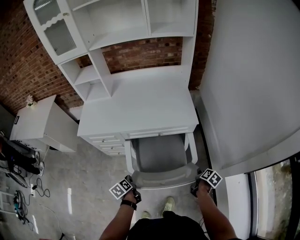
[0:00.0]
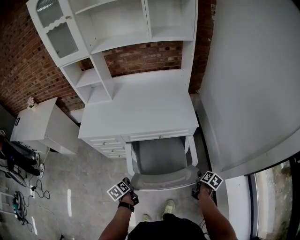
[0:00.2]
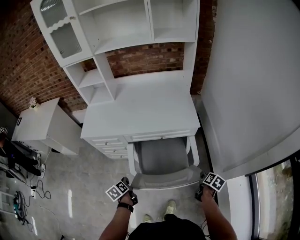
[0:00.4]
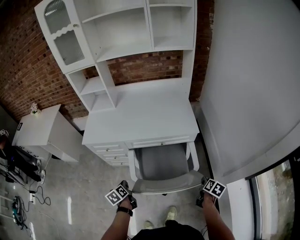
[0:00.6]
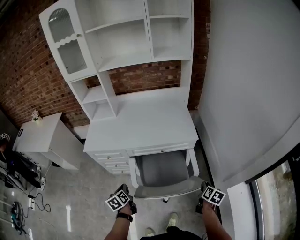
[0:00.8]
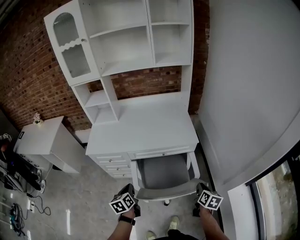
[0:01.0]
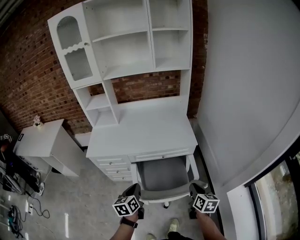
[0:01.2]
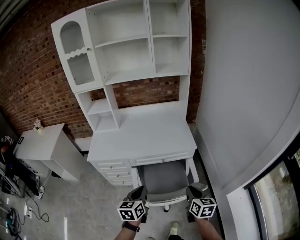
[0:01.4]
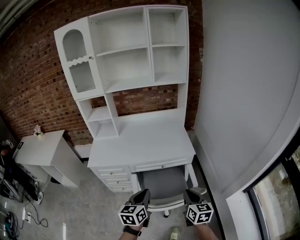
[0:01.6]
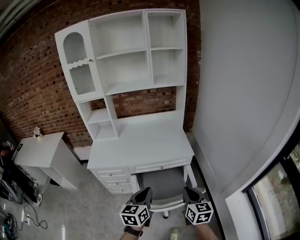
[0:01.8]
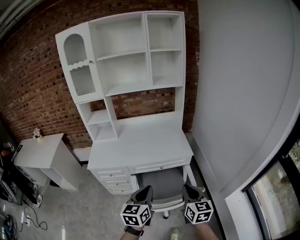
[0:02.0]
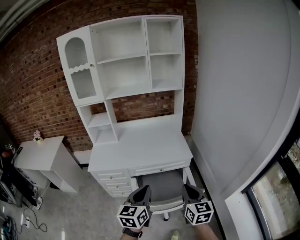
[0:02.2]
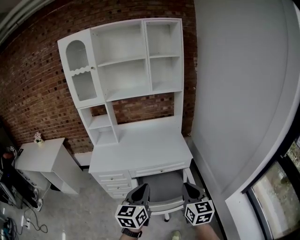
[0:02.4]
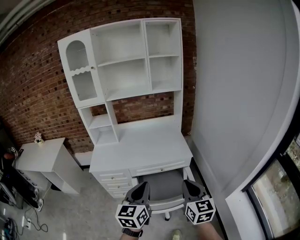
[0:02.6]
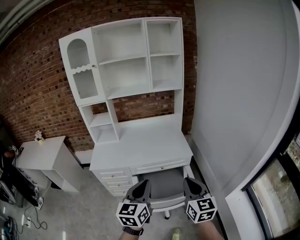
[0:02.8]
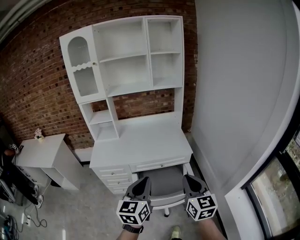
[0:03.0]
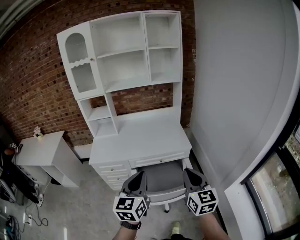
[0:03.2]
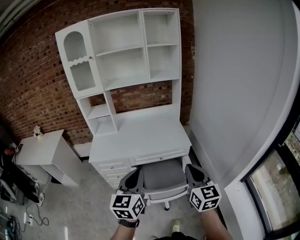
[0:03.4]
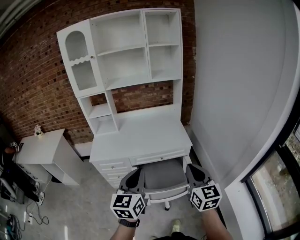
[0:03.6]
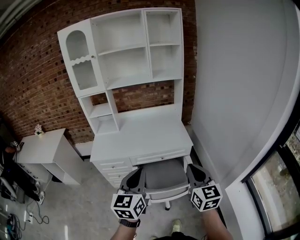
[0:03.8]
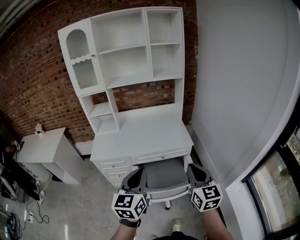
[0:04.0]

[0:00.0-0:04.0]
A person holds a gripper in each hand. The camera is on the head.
0:00.0 to 0:01.4: The left gripper shifts about 25 cm upward, and swivels about 50 degrees. The right gripper travels upward and to the left by roughly 30 cm, swivels approximately 50 degrees, and closes.
0:01.4 to 0:02.6: Both grippers travel together upward, approximately 15 cm. The right gripper rotates approximately 20 degrees.
0:02.6 to 0:04.0: The grippers stay close to where they were, moving slightly.

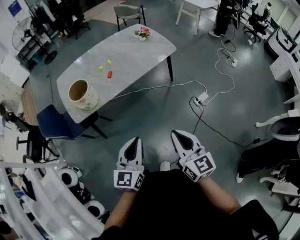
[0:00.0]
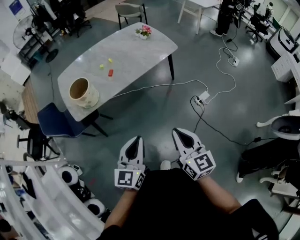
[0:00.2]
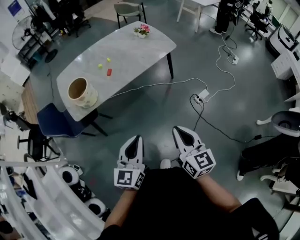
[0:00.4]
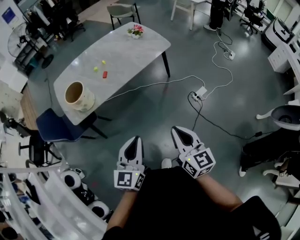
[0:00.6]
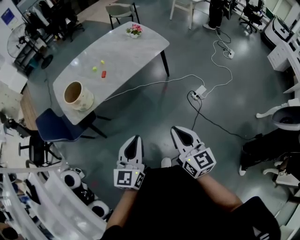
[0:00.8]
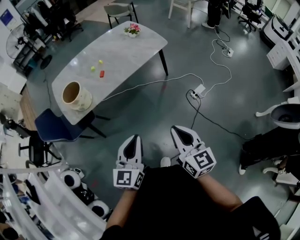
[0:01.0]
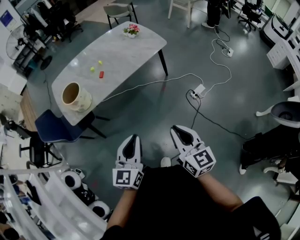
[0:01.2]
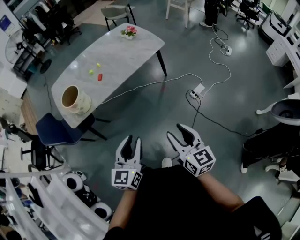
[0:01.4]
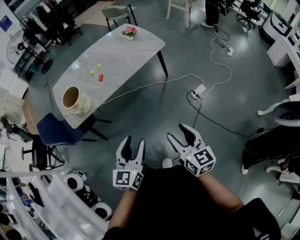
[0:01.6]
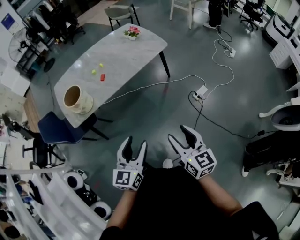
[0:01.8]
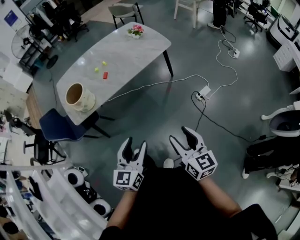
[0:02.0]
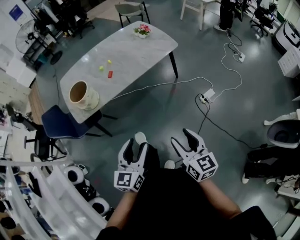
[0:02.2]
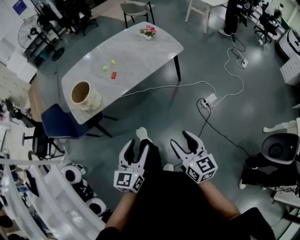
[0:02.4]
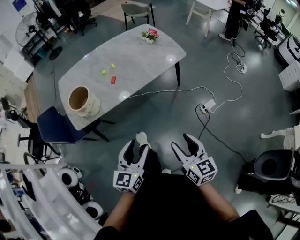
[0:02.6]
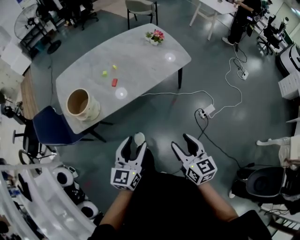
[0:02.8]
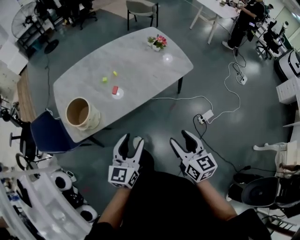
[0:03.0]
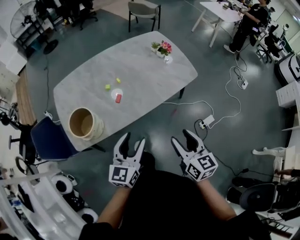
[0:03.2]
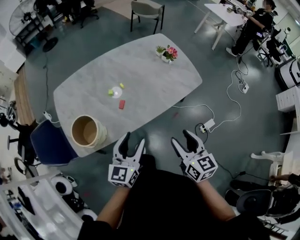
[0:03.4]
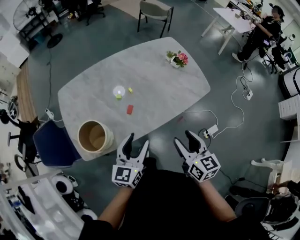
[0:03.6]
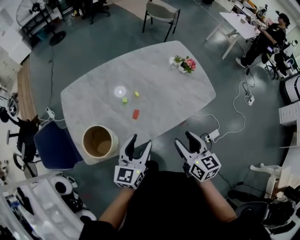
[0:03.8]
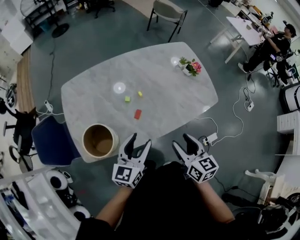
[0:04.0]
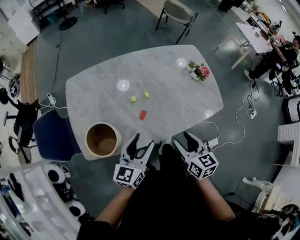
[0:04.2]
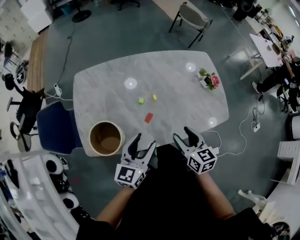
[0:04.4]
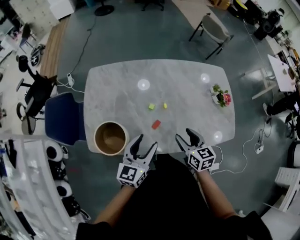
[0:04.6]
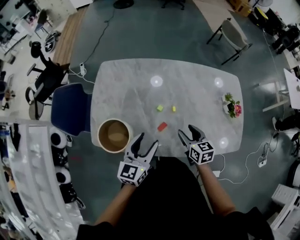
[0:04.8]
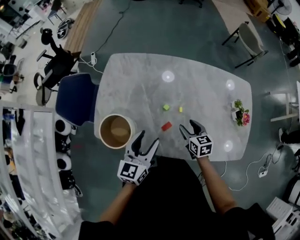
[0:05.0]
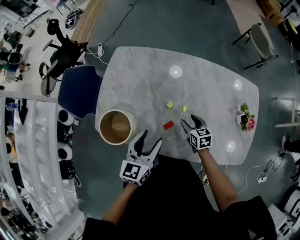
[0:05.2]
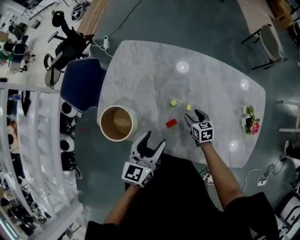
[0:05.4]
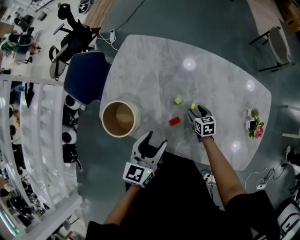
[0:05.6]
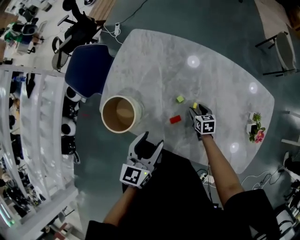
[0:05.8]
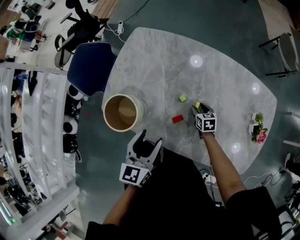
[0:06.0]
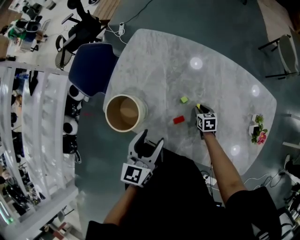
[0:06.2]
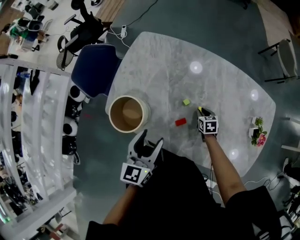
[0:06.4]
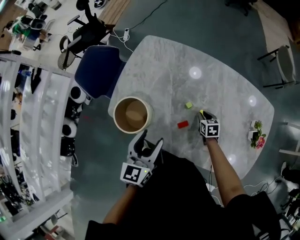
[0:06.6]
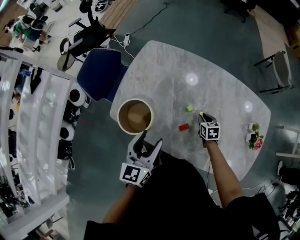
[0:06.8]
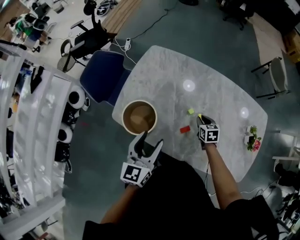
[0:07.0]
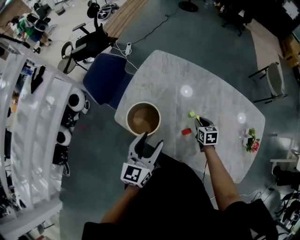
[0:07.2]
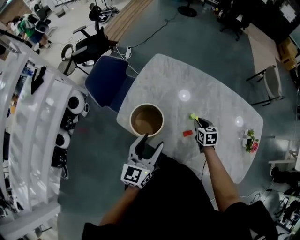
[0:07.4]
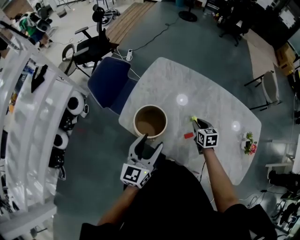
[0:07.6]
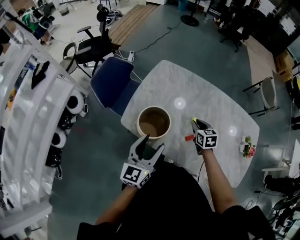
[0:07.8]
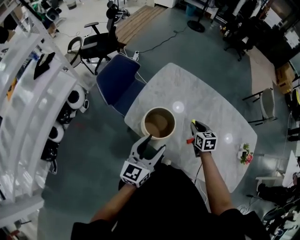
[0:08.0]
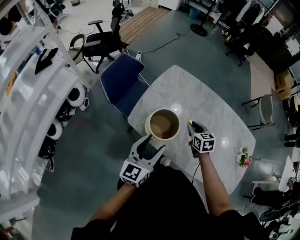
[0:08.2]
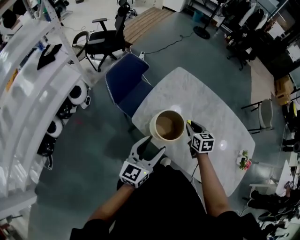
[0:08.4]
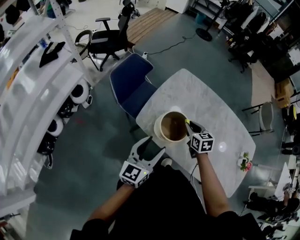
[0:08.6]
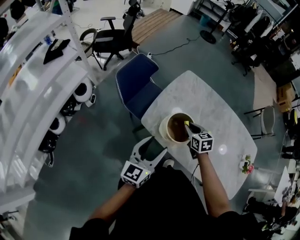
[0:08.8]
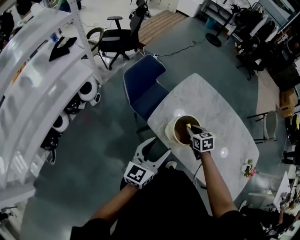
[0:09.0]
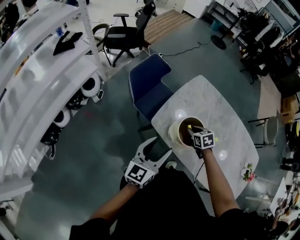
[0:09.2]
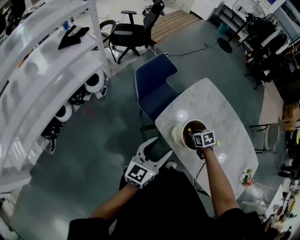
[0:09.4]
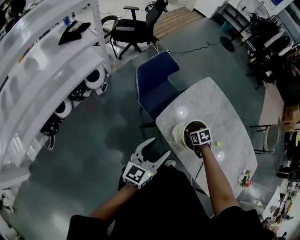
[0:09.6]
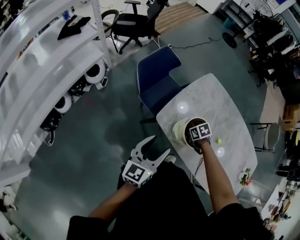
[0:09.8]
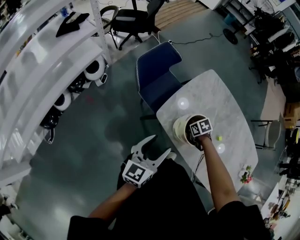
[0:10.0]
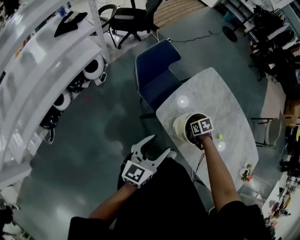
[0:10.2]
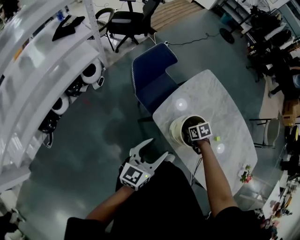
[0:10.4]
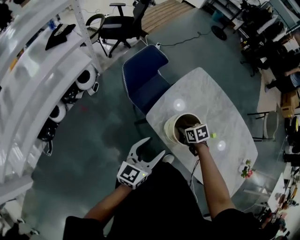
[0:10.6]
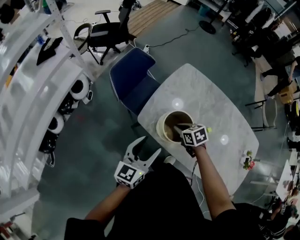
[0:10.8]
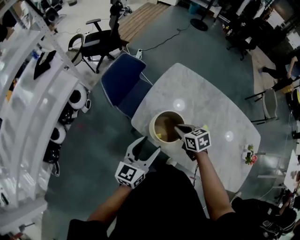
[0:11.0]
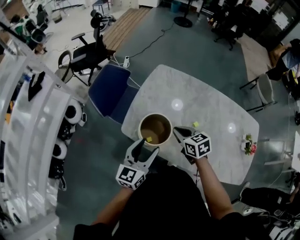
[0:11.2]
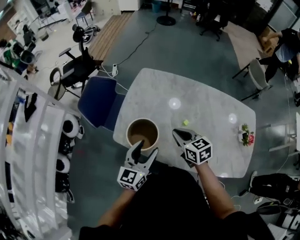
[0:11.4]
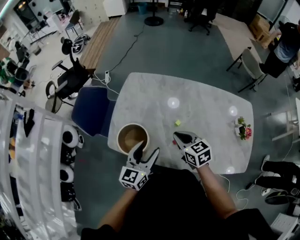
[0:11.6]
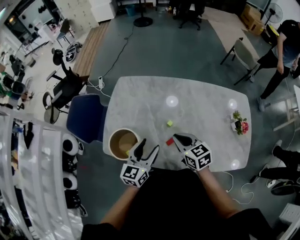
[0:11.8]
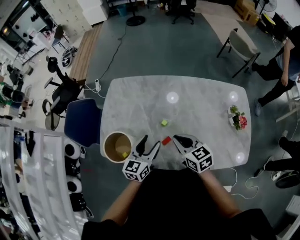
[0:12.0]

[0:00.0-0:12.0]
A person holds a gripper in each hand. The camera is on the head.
0:00.0 to 0:01.6: The grippers both shift to the right by some 5 cm. The left gripper opens its fingers; the right gripper opens.
0:01.6 to 0:03.0: The grippers both shift forward by about 25 cm.
0:03.0 to 0:04.4: Both grippers travel together forward and to the left, roughly 35 cm. The right gripper changes its angle by some 20 degrees.
0:04.4 to 0:06.0: The left gripper heads downward, covering about 5 cm, and changes its angle by approximately 40 degrees. The right gripper is displaced downward by roughly 30 cm, and turns by roughly 40 degrees.
0:06.0 to 0:07.6: The left gripper goes about 15 cm to the left and upward, while the right gripper goes some 20 cm upward and to the left, and closes up.
0:07.6 to 0:09.0: The left gripper is displaced to the left by some 15 cm. Meanwhile the right gripper heads to the left, covering about 25 cm, and swivels some 20 degrees.
0:09.0 to 0:10.4: The left gripper shifts by some 5 cm, while the right gripper goes roughly 10 cm downward, and changes its angle by about 30 degrees.
0:10.4 to 0:12.0: The left gripper changes place by some 40 cm, and turns by roughly 30 degrees. Meanwhile the right gripper moves about 40 cm, and tips its fingers upward by approximately 40 degrees.

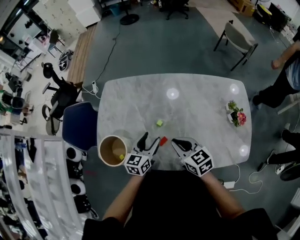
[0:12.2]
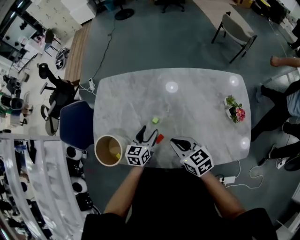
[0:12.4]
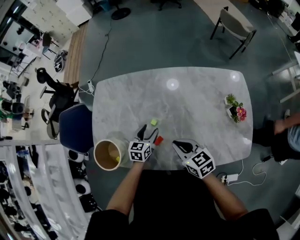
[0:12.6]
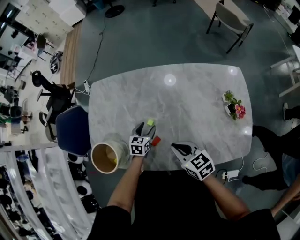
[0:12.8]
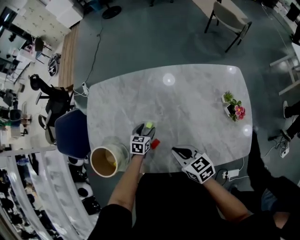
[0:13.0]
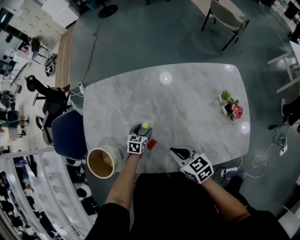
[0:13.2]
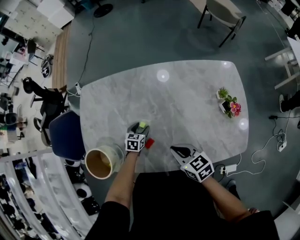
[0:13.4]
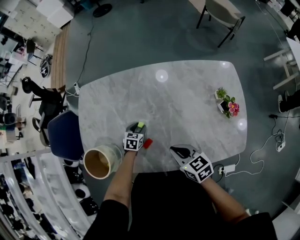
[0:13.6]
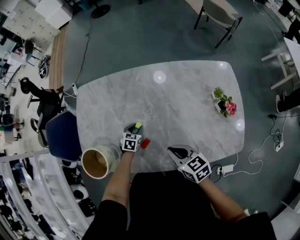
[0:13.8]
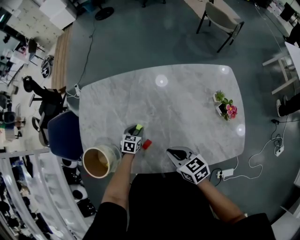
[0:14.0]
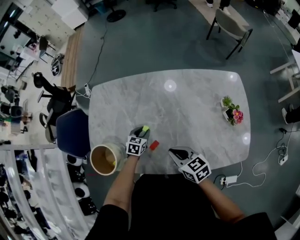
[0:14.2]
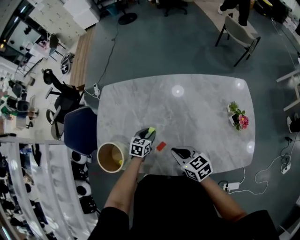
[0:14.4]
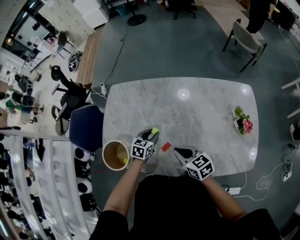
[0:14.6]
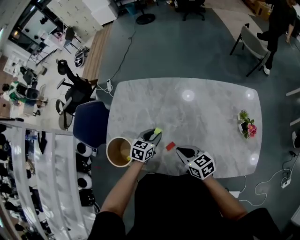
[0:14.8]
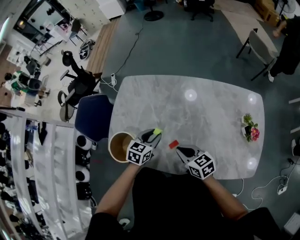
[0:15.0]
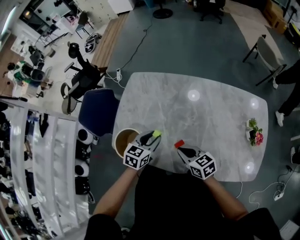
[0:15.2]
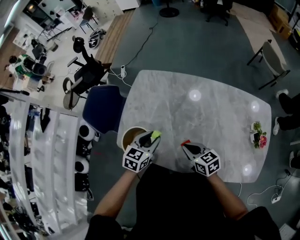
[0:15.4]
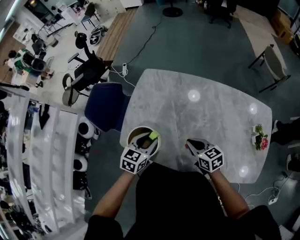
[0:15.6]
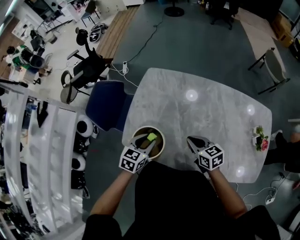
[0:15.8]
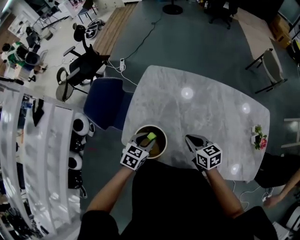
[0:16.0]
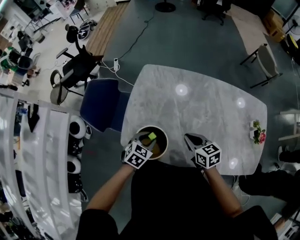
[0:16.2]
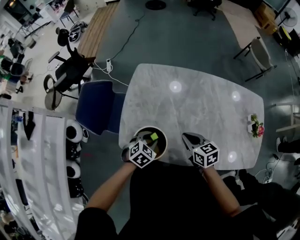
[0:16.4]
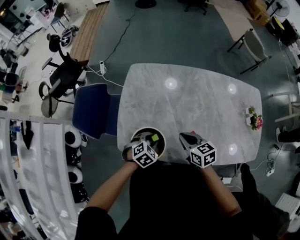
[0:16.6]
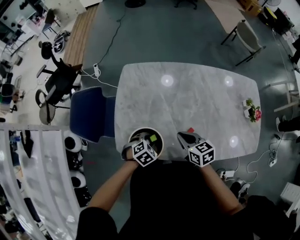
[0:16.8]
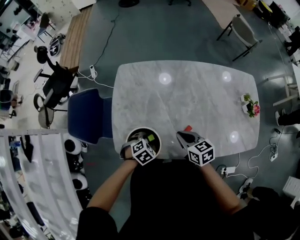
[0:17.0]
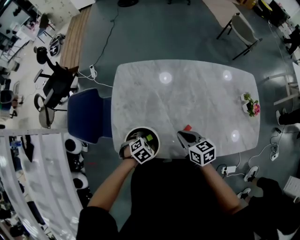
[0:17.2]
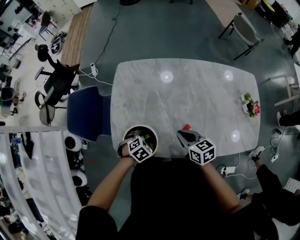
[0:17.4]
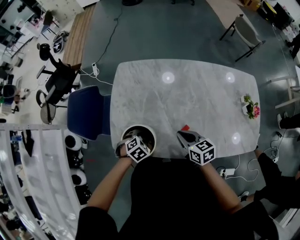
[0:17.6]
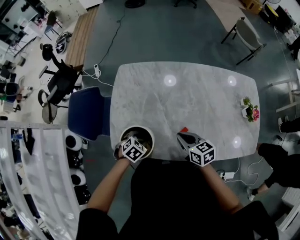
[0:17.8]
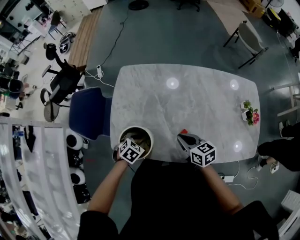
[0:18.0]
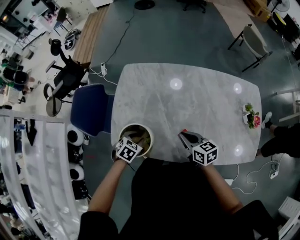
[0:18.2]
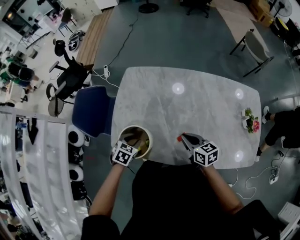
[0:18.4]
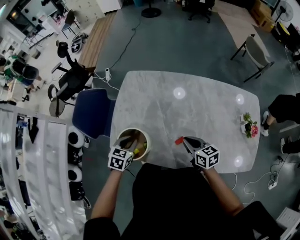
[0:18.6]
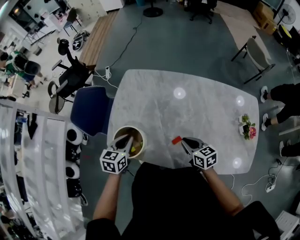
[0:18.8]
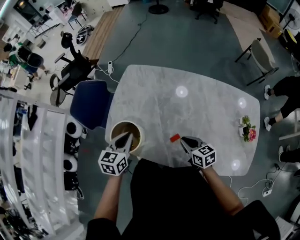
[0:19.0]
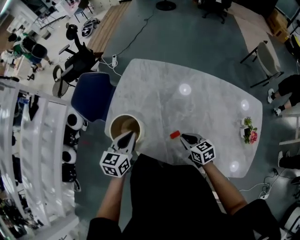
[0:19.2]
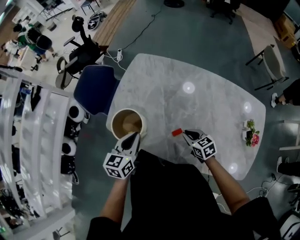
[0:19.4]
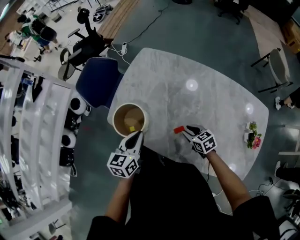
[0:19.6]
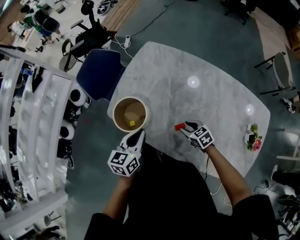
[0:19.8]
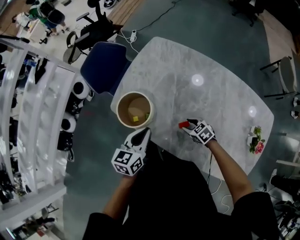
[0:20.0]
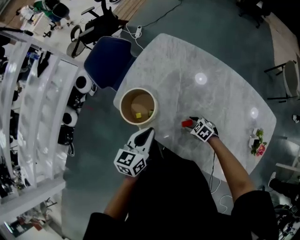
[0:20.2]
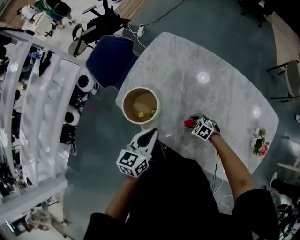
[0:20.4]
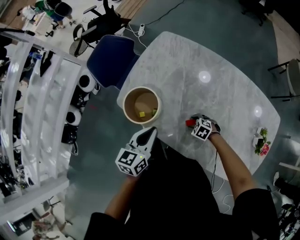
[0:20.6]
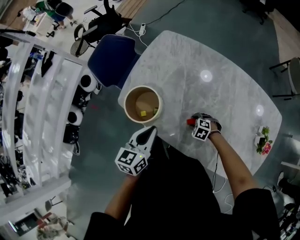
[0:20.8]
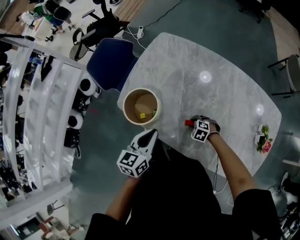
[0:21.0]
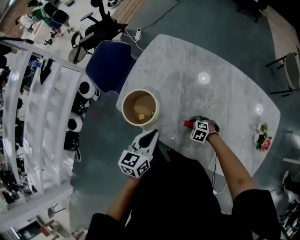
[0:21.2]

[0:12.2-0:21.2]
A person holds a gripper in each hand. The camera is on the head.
0:12.2 to 0:13.8: The right gripper heads to the right and downward, covering some 10 cm, while the left gripper shifts approximately 25 cm downward, tilts its fingers approximately 30 degrees downward, and closes its fingers.
0:13.8 to 0:15.2: The right gripper shifts roughly 15 cm to the left. The left gripper shifts roughly 25 cm upward and to the left, and swivels some 20 degrees.
0:15.2 to 0:16.6: The right gripper moves to the left and forward, about 15 cm; the left gripper moves to the left and downward, approximately 15 cm, and turns by approximately 40 degrees.
0:16.6 to 0:18.2: The right gripper is displaced to the right by approximately 10 cm.
0:18.2 to 0:19.8: The right gripper heads downward, covering some 15 cm, swivels some 40 degrees, and opens up. The left gripper shifts about 10 cm upward, points its fingers about 40 degrees further upward, and closes.
0:19.8 to 0:21.2: The right gripper heads downward, covering some 10 cm, and swivels about 40 degrees.
